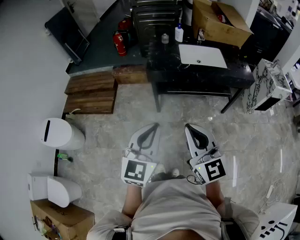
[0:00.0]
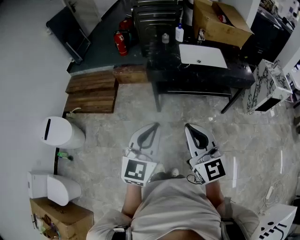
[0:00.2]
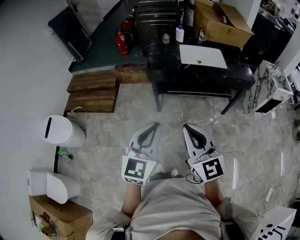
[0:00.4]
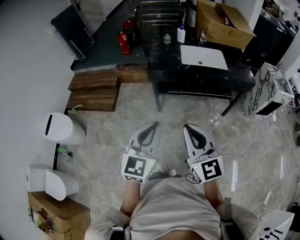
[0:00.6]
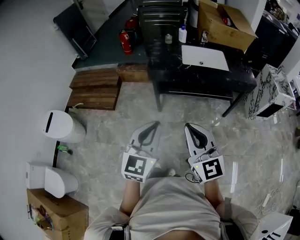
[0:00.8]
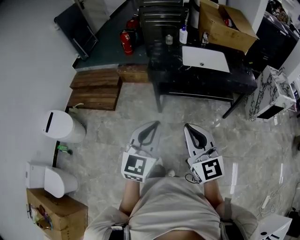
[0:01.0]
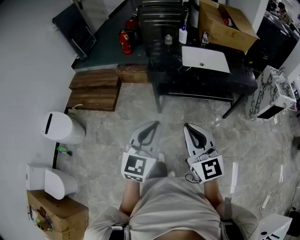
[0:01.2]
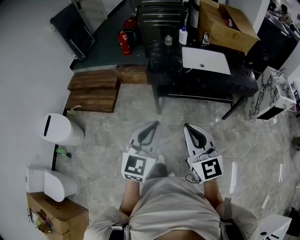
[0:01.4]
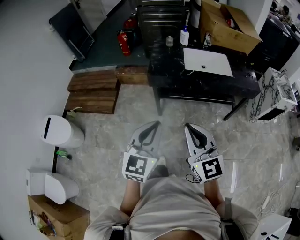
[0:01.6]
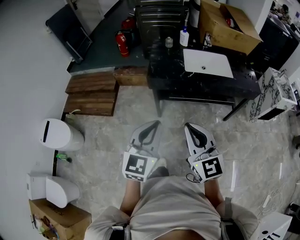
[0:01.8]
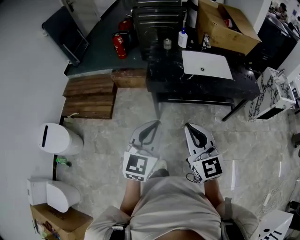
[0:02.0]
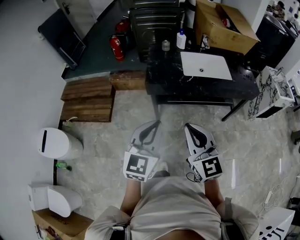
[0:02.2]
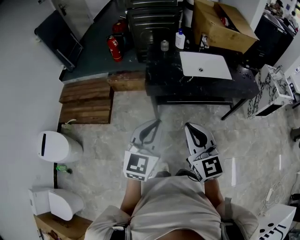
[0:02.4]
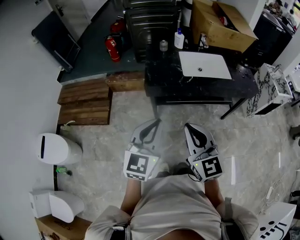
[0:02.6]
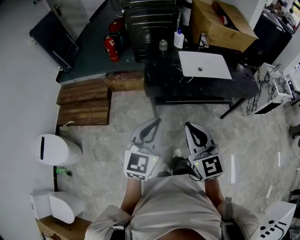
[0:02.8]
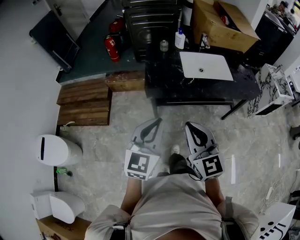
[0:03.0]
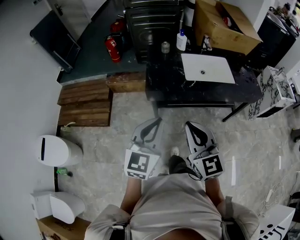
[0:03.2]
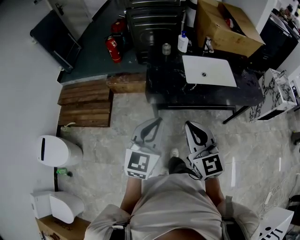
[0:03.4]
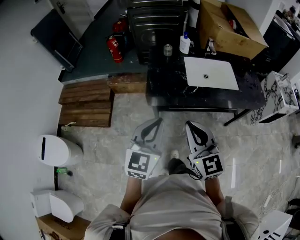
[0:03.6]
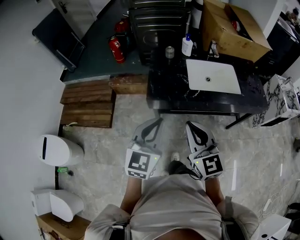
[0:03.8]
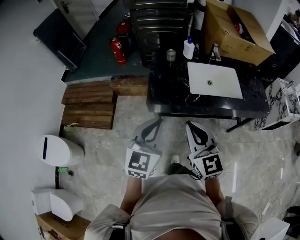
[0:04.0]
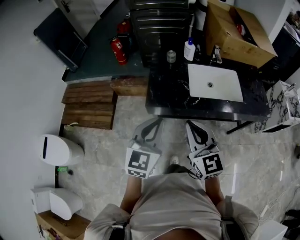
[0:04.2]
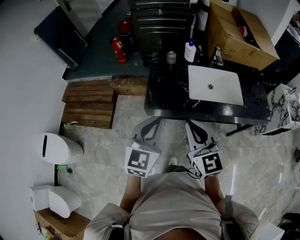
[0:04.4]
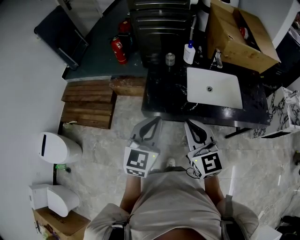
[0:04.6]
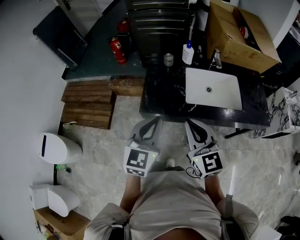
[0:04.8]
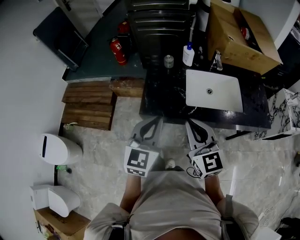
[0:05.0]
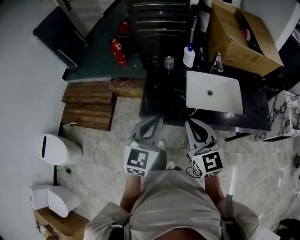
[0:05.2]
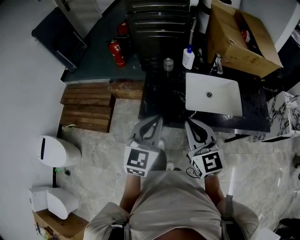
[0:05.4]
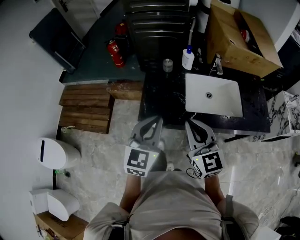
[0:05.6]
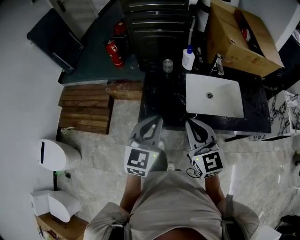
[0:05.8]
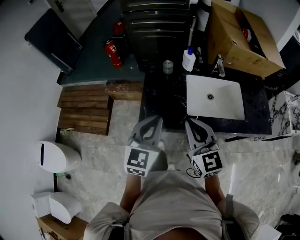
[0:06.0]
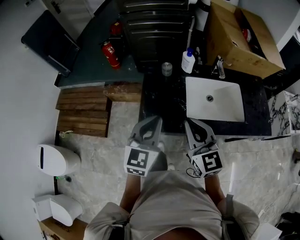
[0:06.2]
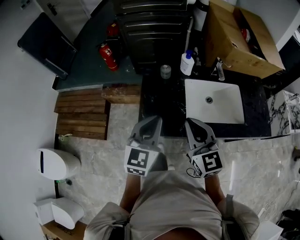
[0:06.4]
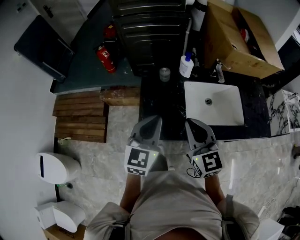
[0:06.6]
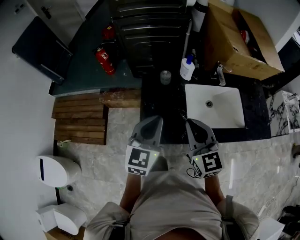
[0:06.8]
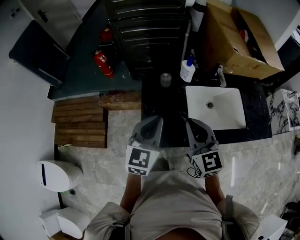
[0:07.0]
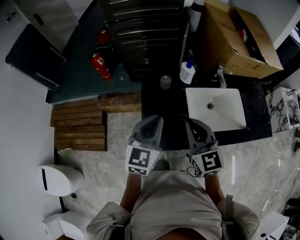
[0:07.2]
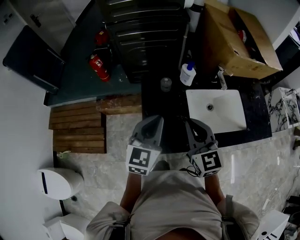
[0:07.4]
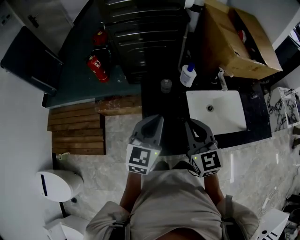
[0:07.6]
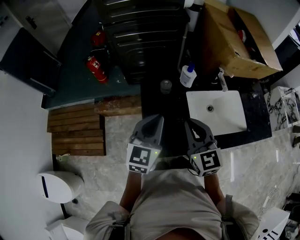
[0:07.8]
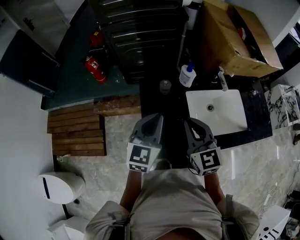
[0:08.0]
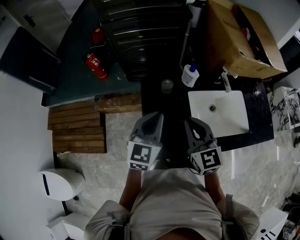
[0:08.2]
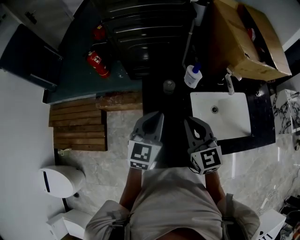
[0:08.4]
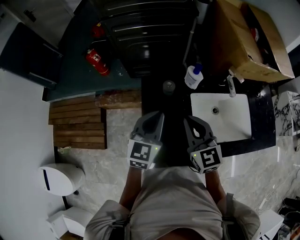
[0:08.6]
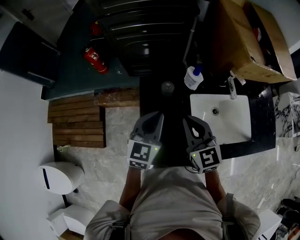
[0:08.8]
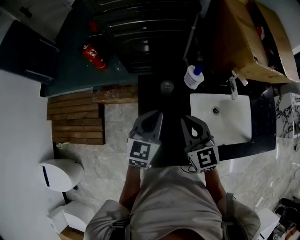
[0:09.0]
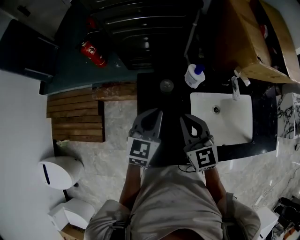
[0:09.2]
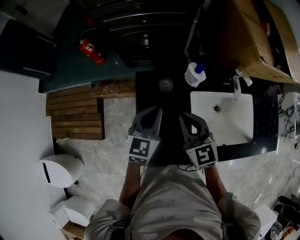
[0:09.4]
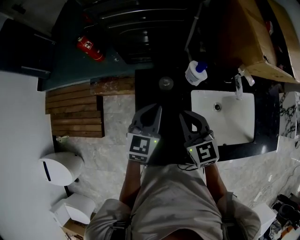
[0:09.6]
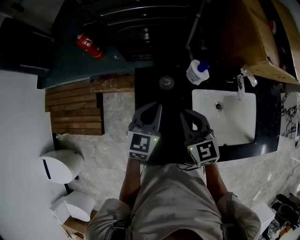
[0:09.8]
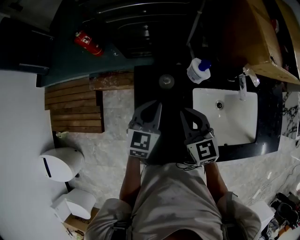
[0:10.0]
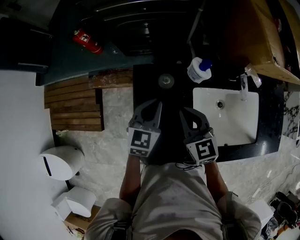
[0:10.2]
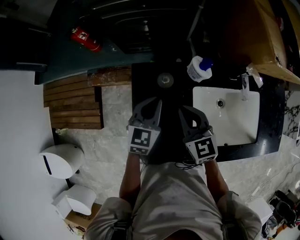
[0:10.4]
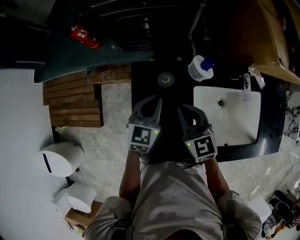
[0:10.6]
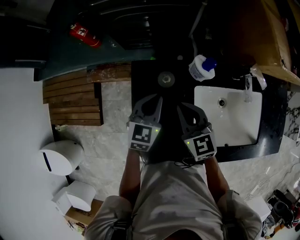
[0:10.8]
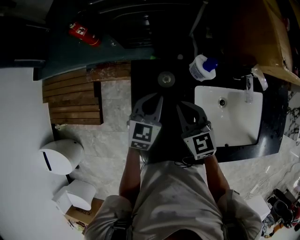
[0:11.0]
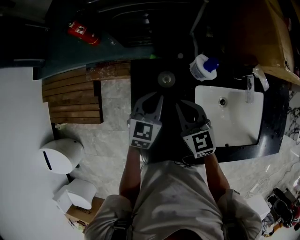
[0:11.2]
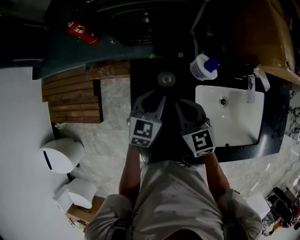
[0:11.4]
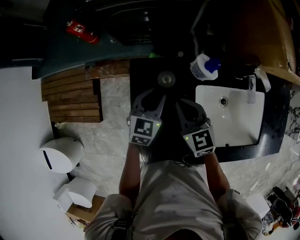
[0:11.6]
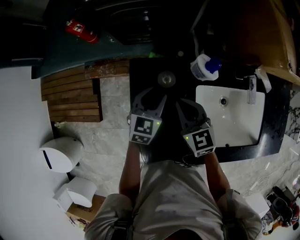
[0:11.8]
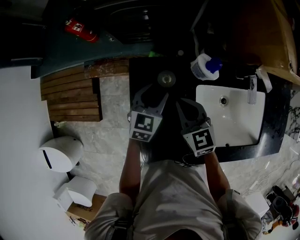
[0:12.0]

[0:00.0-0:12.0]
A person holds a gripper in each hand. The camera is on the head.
0:00.0 to 0:01.6: Both grippers travel together forward, approximately 5 cm.
0:01.6 to 0:03.0: The two grippers go some 15 cm forward.
0:03.0 to 0:04.4: Both grippers travel together forward, roughly 15 cm.
0:04.4 to 0:06.0: The grippers both shift forward by about 10 cm.
0:06.0 to 0:07.6: Both grippers move forward, approximately 15 cm.
0:07.6 to 0:09.0: Both grippers move forward and downward, some 10 cm.
0:09.0 to 0:10.4: The two grippers go approximately 10 cm downward and forward.
0:10.4 to 0:12.0: The left gripper goes roughly 5 cm downward, and opens, while the right gripper ends up roughly 5 cm from where it was.

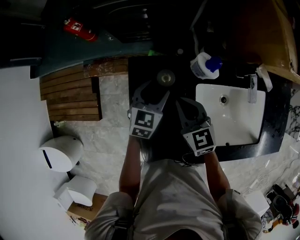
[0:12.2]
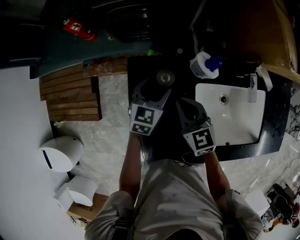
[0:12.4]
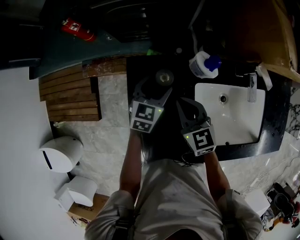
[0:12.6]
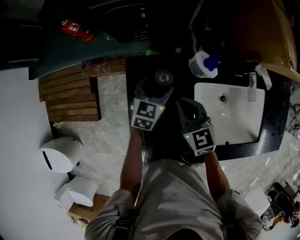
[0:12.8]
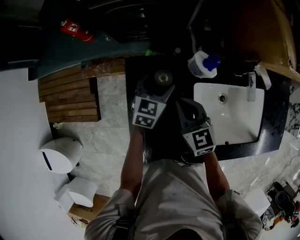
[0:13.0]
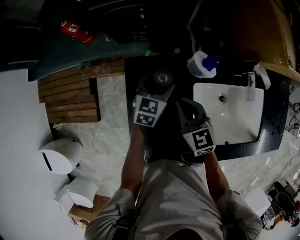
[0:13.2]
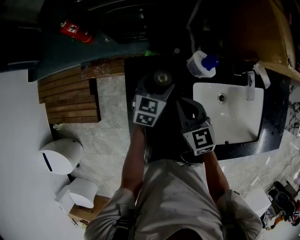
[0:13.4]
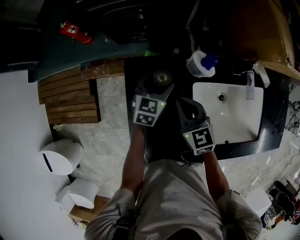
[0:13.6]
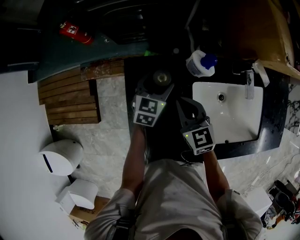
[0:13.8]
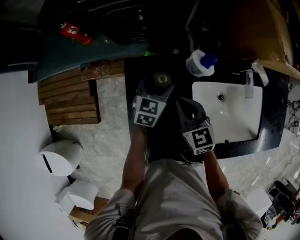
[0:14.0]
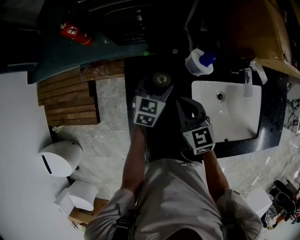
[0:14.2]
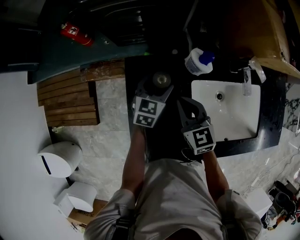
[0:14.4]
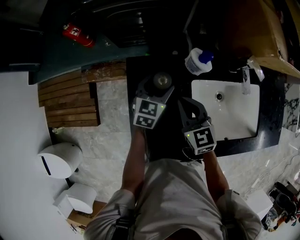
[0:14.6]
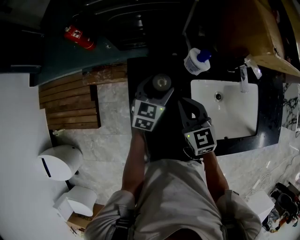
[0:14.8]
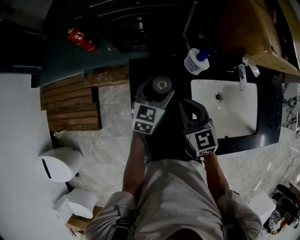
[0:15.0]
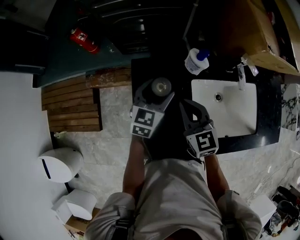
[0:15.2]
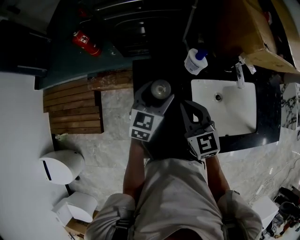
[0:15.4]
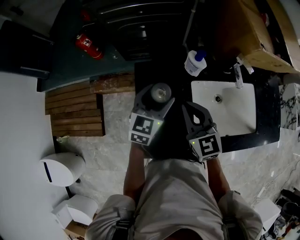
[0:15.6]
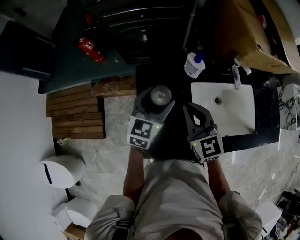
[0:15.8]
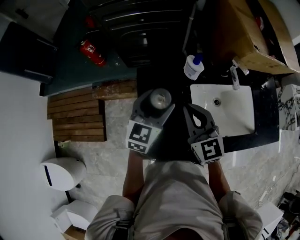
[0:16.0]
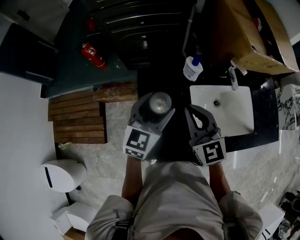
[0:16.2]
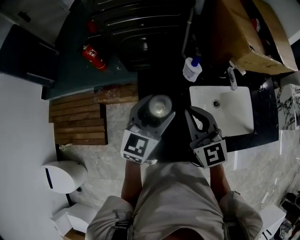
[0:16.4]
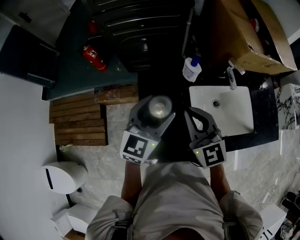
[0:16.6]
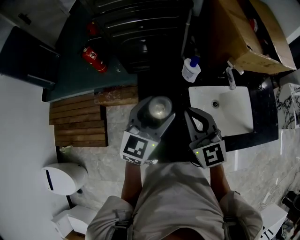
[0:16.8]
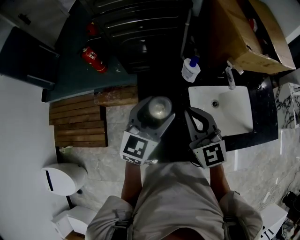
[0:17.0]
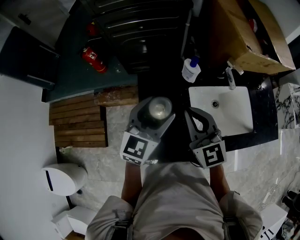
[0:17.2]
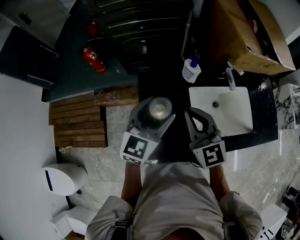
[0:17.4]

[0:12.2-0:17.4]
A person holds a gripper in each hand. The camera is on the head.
0:12.2 to 0:14.0: There are only small adjustments of the grippers.
0:14.0 to 0:15.6: Both grippers travel together upward and backward, some 15 cm.
0:15.6 to 0:17.4: The left gripper heads upward and backward, covering roughly 15 cm. Meanwhile the right gripper moves upward, about 10 cm.

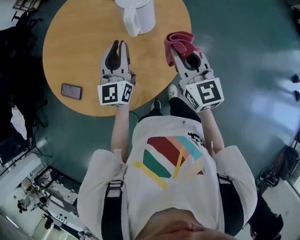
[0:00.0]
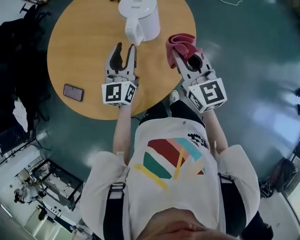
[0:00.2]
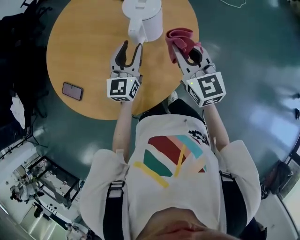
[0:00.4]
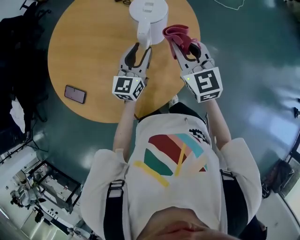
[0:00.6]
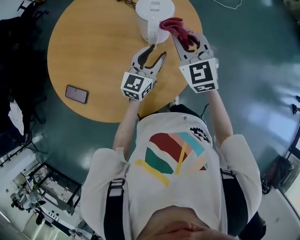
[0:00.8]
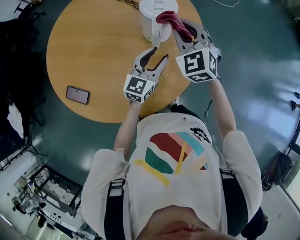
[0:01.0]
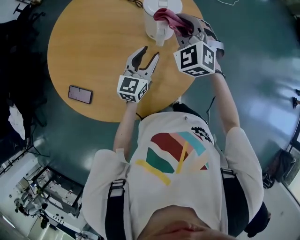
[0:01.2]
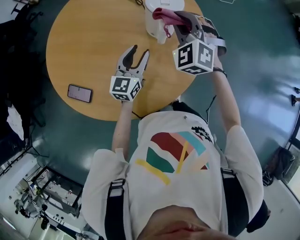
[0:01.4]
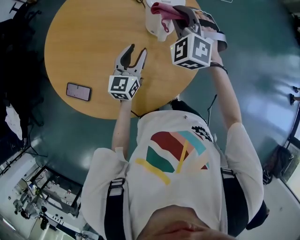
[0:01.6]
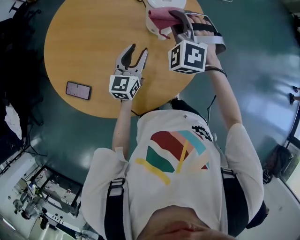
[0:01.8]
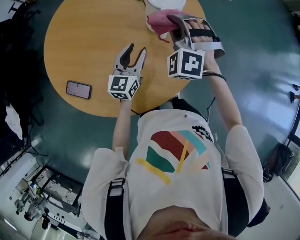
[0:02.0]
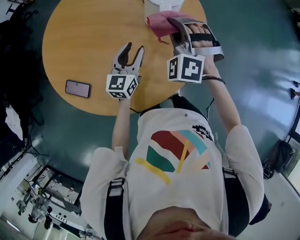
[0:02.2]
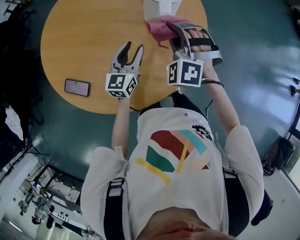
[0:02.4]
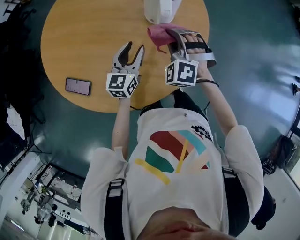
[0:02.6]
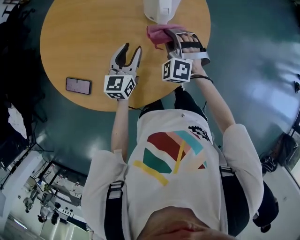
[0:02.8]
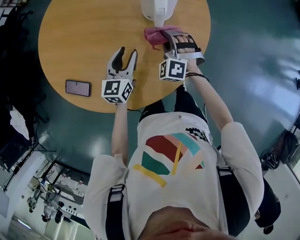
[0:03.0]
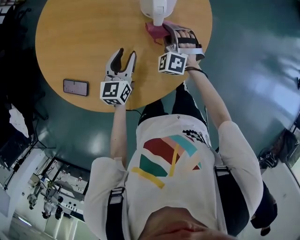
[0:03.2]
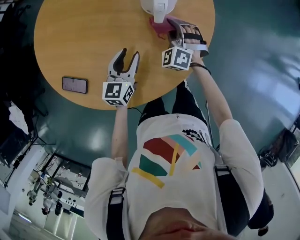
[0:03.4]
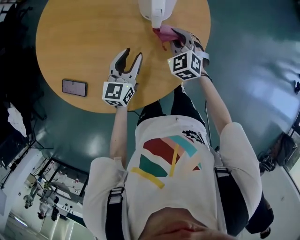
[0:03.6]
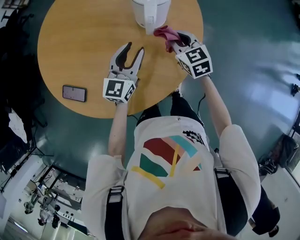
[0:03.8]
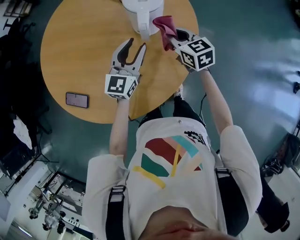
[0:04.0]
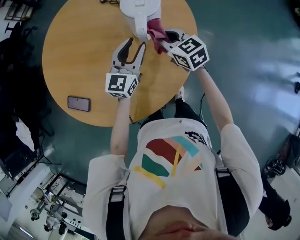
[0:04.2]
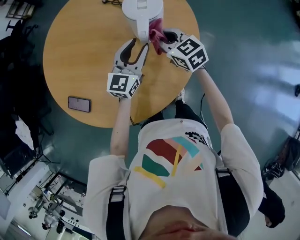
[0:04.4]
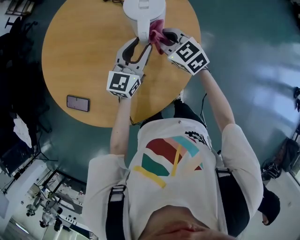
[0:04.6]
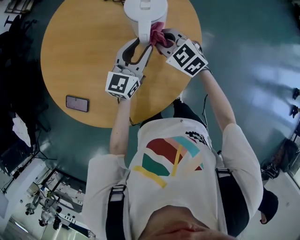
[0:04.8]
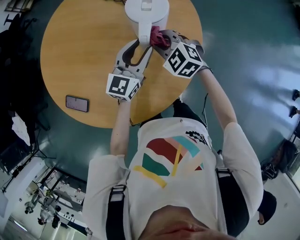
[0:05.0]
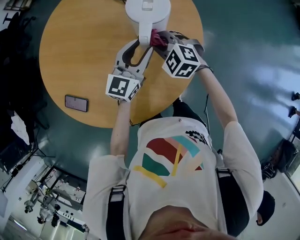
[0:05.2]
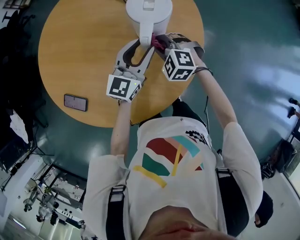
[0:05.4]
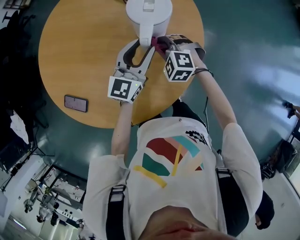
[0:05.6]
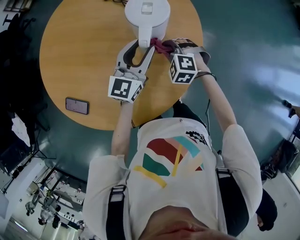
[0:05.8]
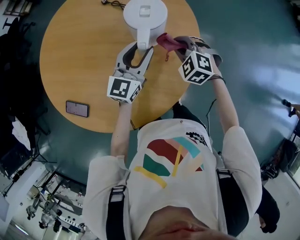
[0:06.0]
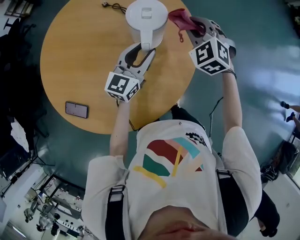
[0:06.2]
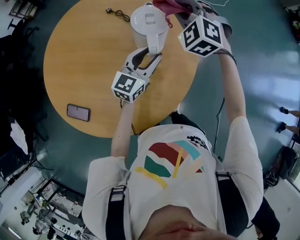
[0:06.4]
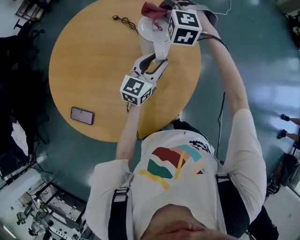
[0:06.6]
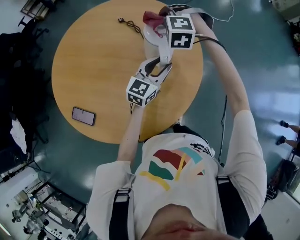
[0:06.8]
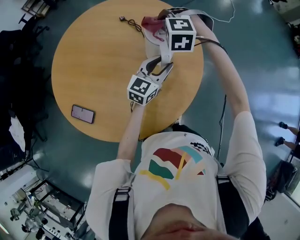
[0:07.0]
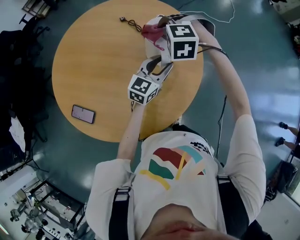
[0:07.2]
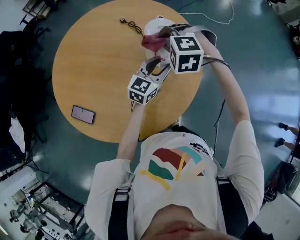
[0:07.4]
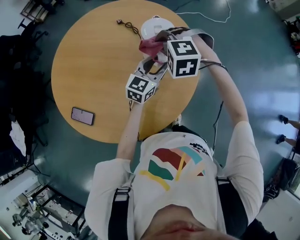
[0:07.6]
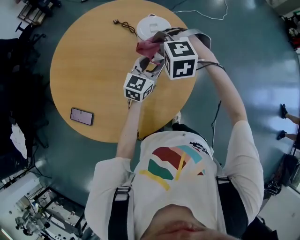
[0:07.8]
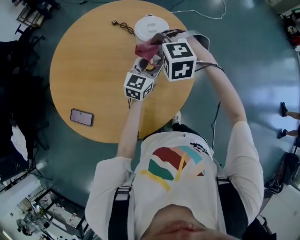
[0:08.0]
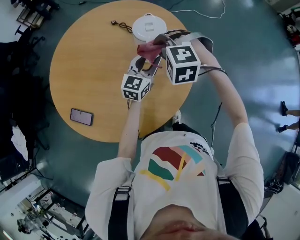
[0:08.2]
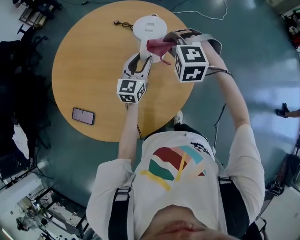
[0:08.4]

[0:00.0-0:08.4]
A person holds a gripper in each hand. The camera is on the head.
0:00.0 to 0:01.4: The left gripper travels downward and to the left by about 10 cm, changes its angle by roughly 20 degrees, and opens its fingers. Meanwhile the right gripper shifts roughly 20 cm forward and to the left, and rolls counterclockwise, seen from behind, by about 60 degrees.
0:01.4 to 0:02.8: The right gripper moves downward and backward, some 15 cm. The left gripper shifts by some 5 cm.
0:02.8 to 0:04.2: The left gripper moves to the right, upward and forward, approximately 15 cm; the right gripper travels forward by some 5 cm, and twists about 60 degrees clockwise, seen from behind.
0:04.2 to 0:05.6: The right gripper moves downward, some 10 cm, and twists roughly 50 degrees counterclockwise, seen from behind.
0:05.6 to 0:07.0: The right gripper travels upward and forward by about 20 cm, and swivels approximately 20 degrees.
0:07.0 to 0:08.4: The left gripper travels to the left by some 5 cm; the right gripper is displaced backward and to the right by roughly 15 cm.
